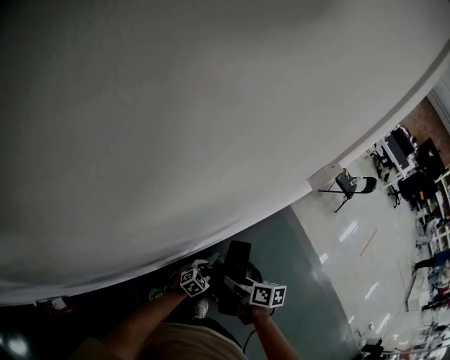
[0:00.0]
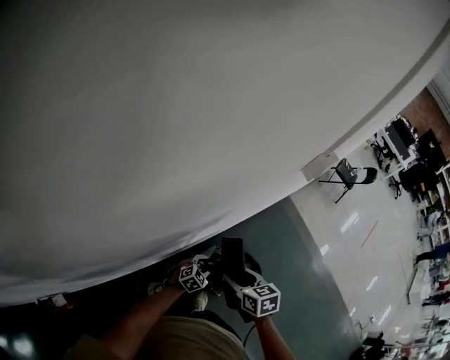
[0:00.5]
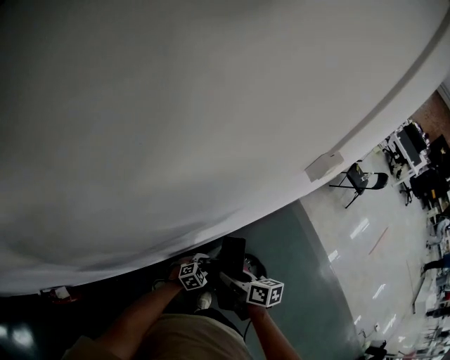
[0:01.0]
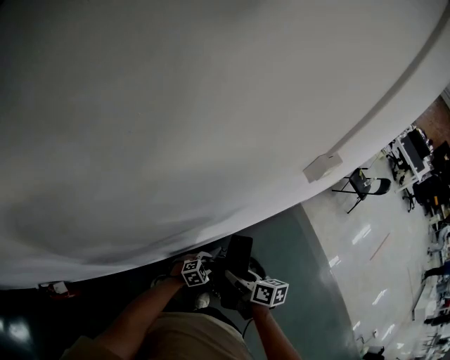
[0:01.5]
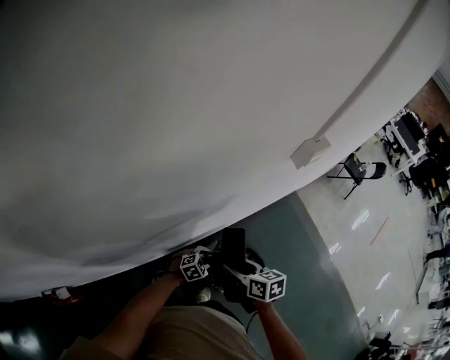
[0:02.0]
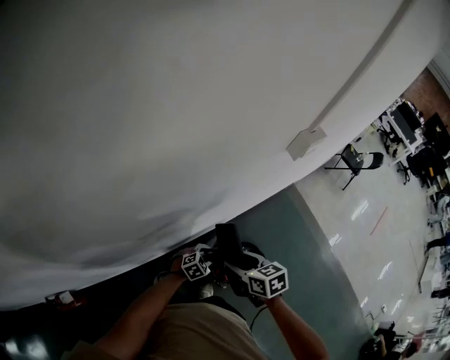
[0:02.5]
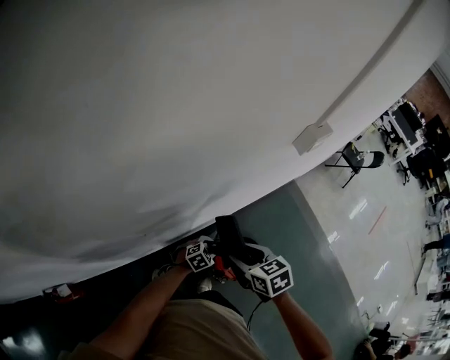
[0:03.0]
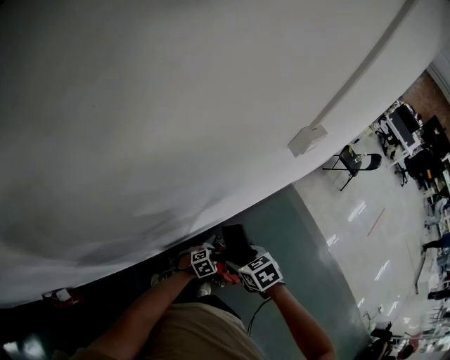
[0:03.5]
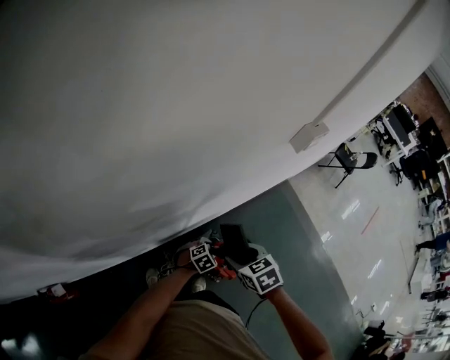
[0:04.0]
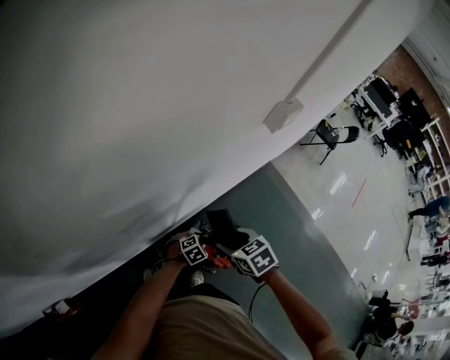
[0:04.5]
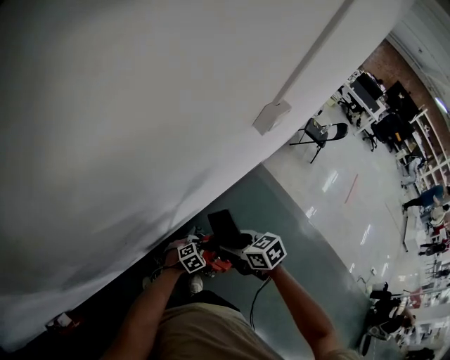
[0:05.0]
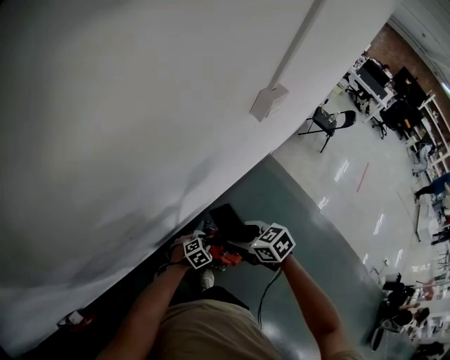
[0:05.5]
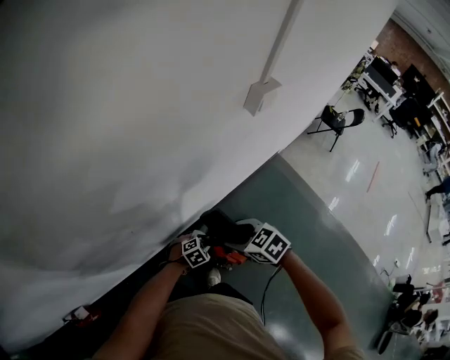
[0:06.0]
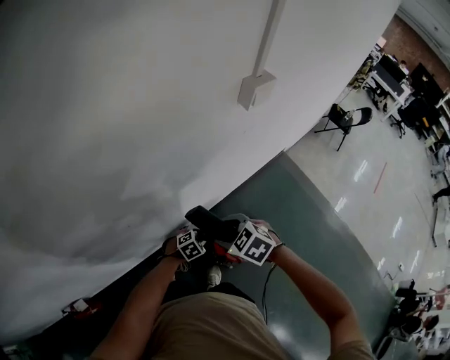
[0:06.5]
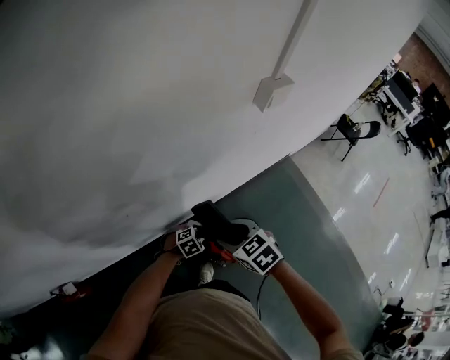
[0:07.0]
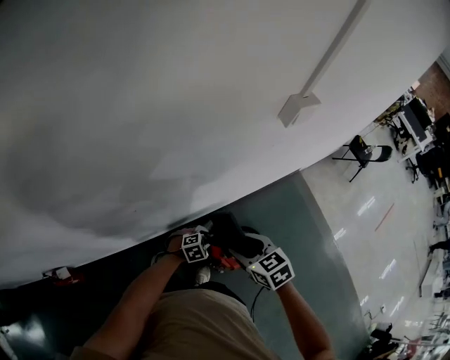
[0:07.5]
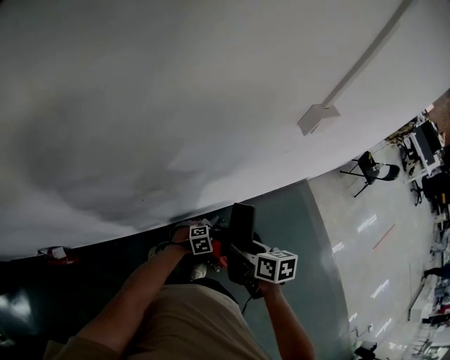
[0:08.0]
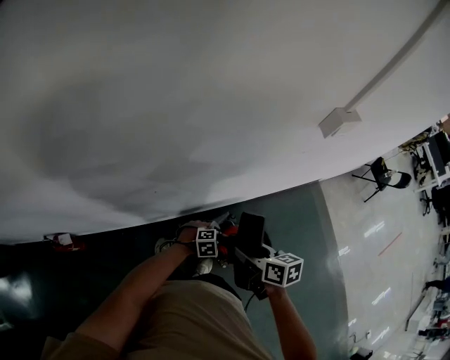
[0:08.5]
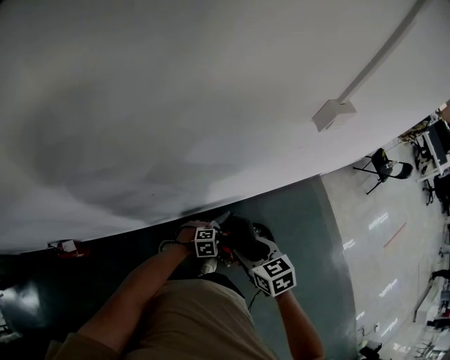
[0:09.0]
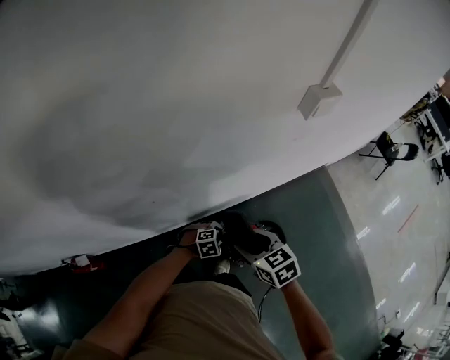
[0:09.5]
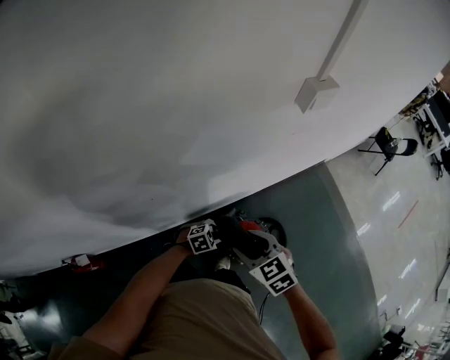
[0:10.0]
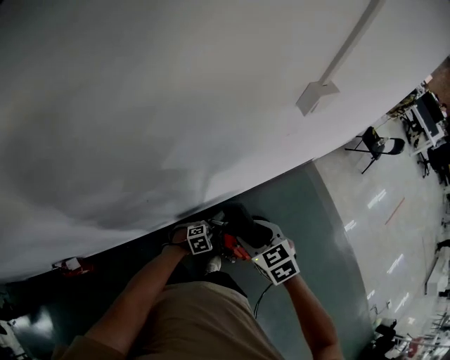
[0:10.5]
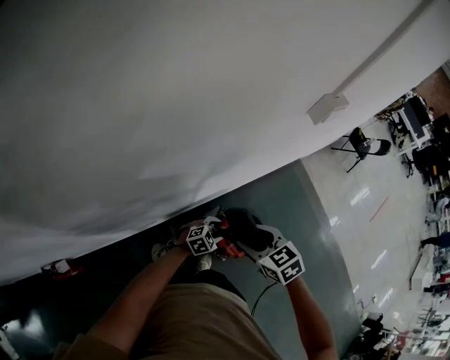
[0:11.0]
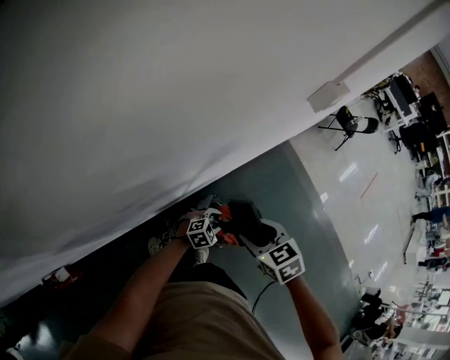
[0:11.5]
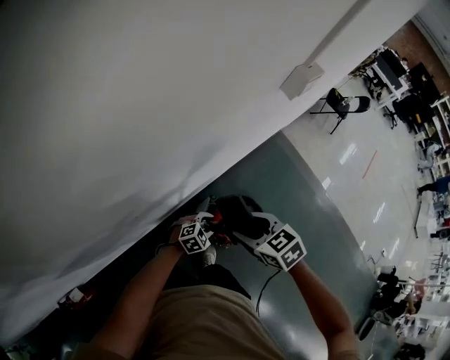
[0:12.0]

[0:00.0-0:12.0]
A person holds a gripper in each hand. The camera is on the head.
0:00.0 to 0:02.0: Both grippers move to the right, approximately 5 cm.
0:02.0 to 0:04.0: The right gripper changes its angle by some 30 degrees.
0:06.0 to 0:08.0: The right gripper rotates roughly 40 degrees.
0:08.0 to 0:10.0: The right gripper rolls counterclockwise, seen from behind, by some 40 degrees.
0:10.0 to 0:12.0: The left gripper closes, then reopens.

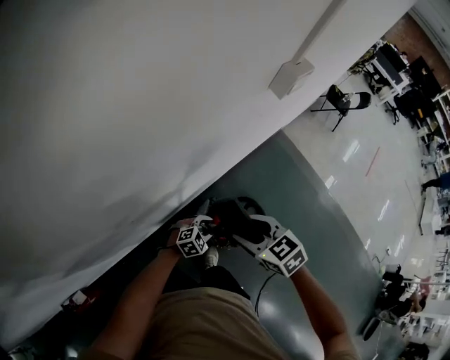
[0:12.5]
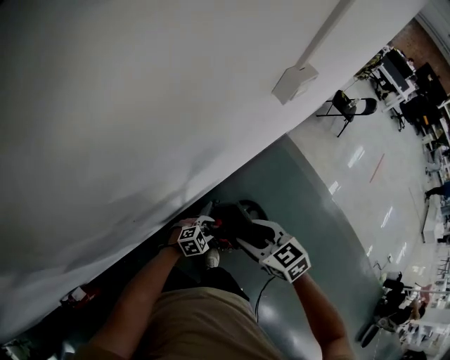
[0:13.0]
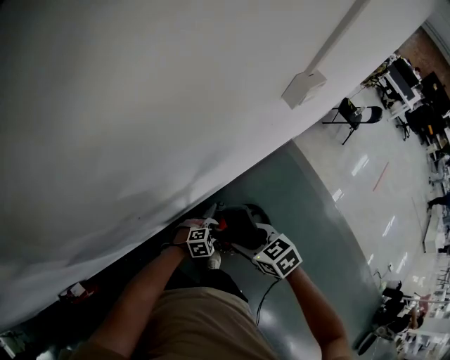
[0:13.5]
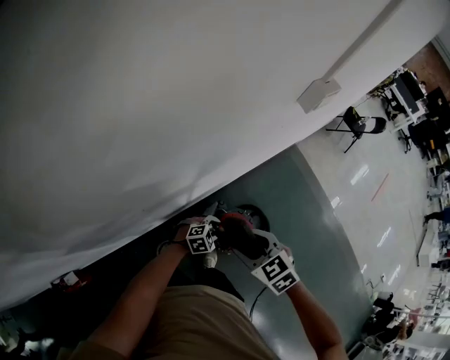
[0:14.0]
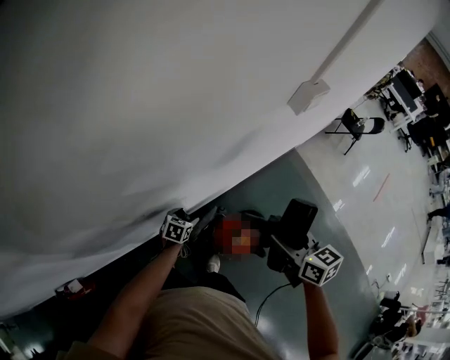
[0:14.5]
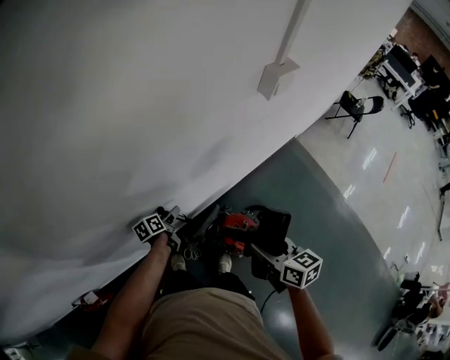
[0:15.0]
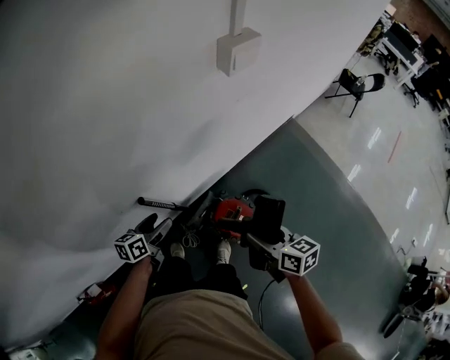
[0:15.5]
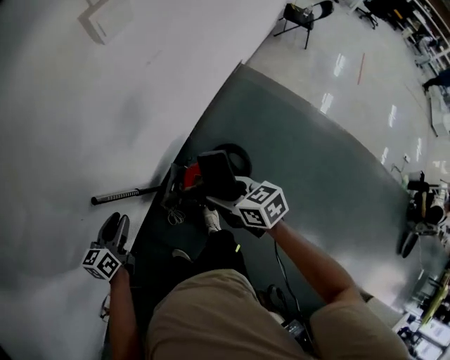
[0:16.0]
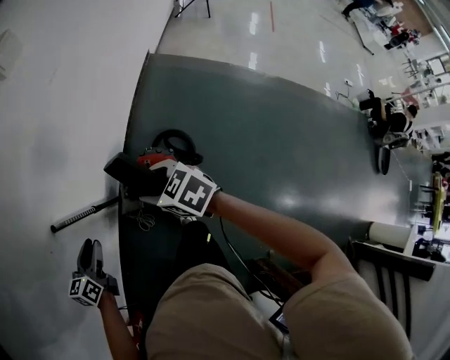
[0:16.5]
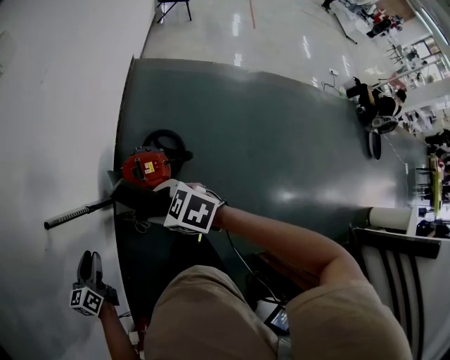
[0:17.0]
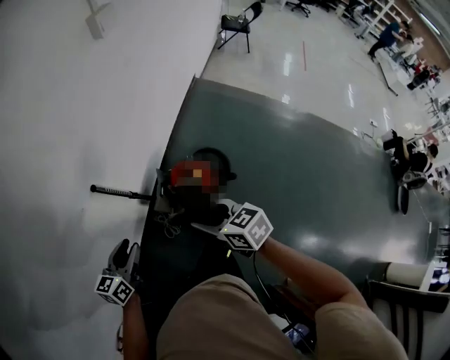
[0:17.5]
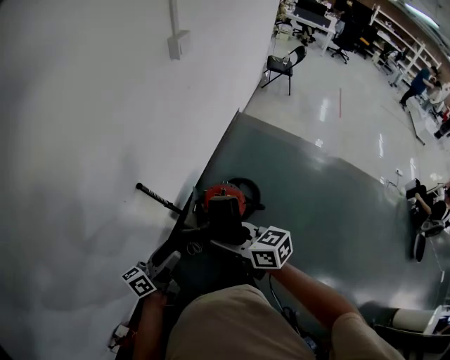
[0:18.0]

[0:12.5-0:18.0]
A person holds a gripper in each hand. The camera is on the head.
0:12.5 to 0:14.5: The right gripper moves approximately 10 cm, and swivels some 30 degrees. The left gripper changes place by approximately 15 cm, rolls counterclockwise, seen from behind, by approximately 50 degrees, and opens up.
0:14.5 to 0:16.0: The left gripper shifts approximately 25 cm upward, and turns by about 20 degrees; the right gripper travels downward, backward and to the right by about 15 cm.
0:16.0 to 0:18.0: The right gripper moves backward, to the left and upward, approximately 30 cm. The left gripper moves backward, about 20 cm, swivels about 40 degrees, and opens its fingers.

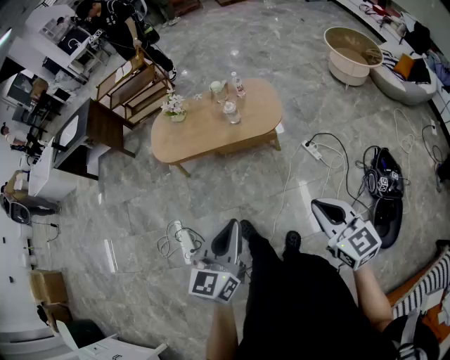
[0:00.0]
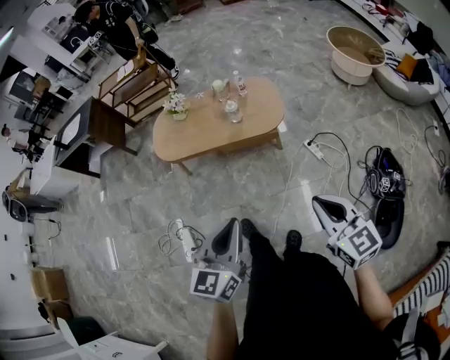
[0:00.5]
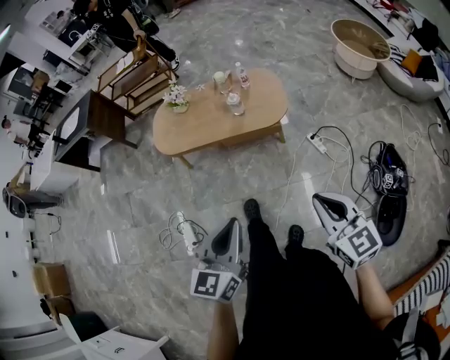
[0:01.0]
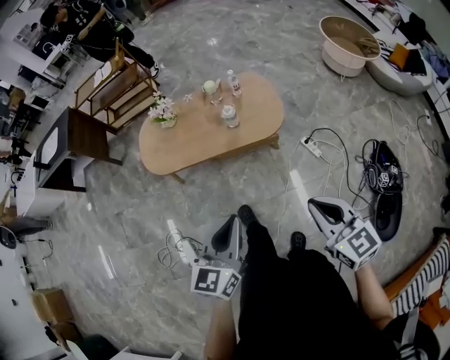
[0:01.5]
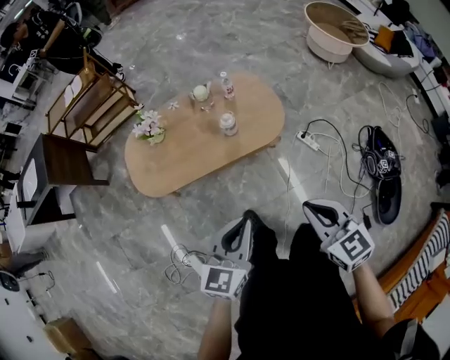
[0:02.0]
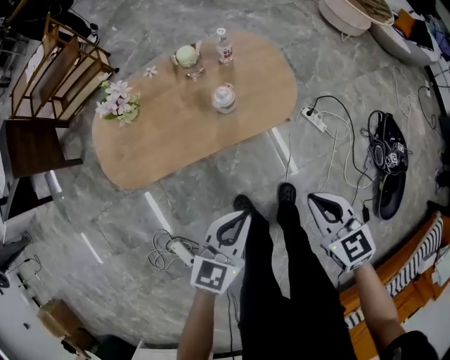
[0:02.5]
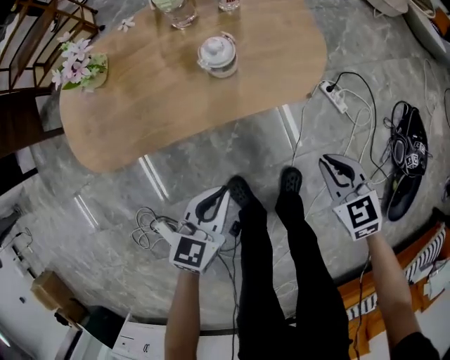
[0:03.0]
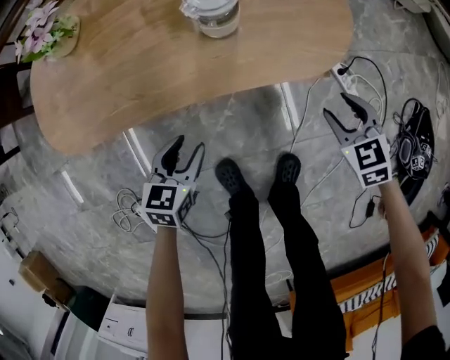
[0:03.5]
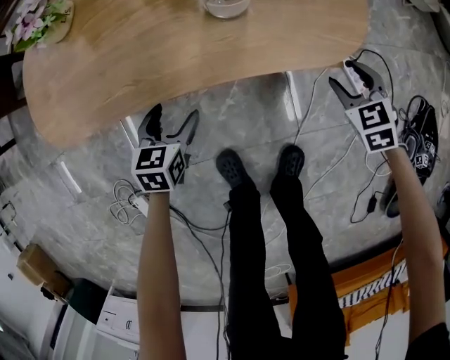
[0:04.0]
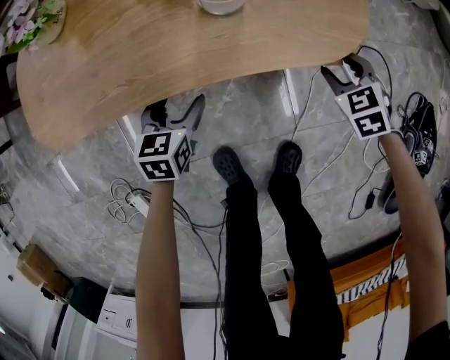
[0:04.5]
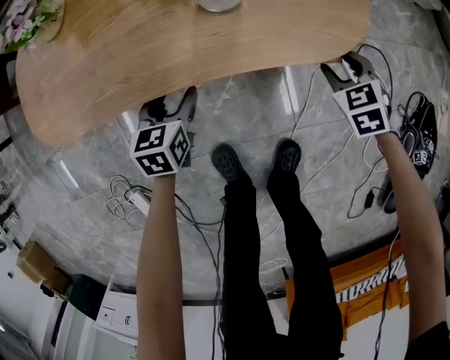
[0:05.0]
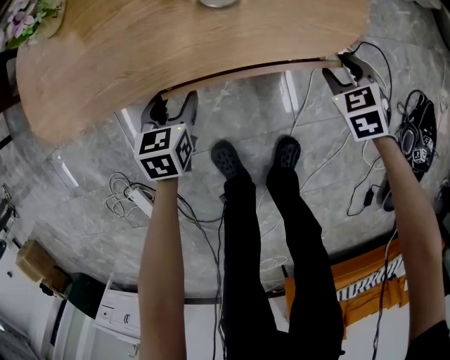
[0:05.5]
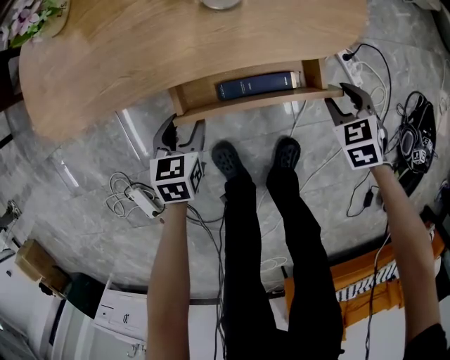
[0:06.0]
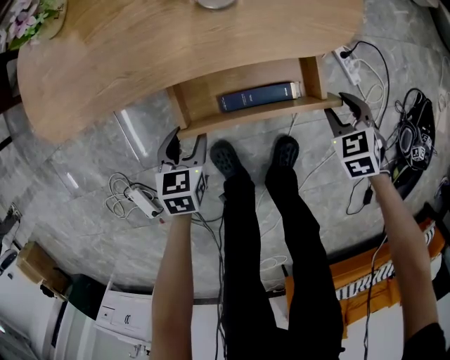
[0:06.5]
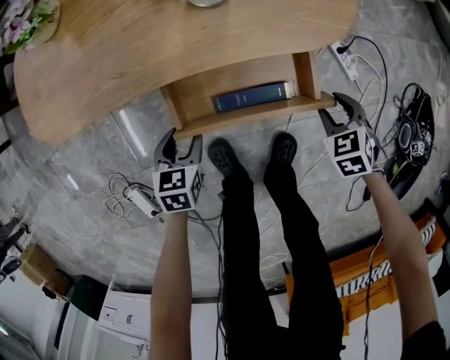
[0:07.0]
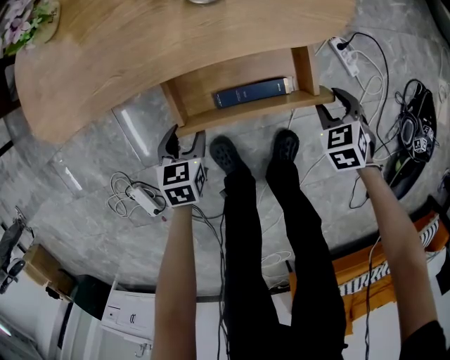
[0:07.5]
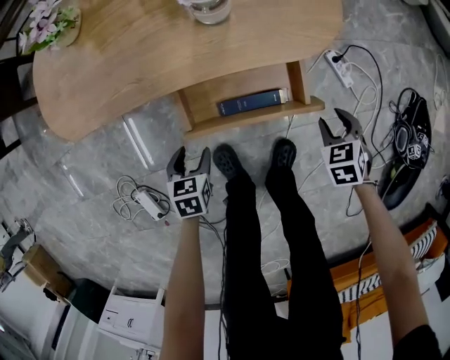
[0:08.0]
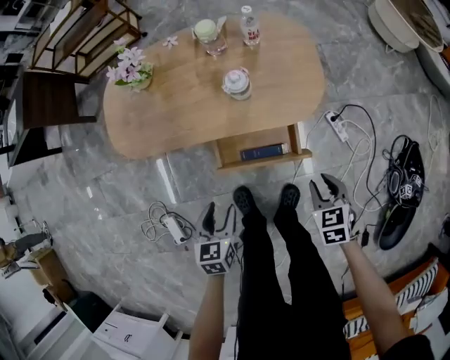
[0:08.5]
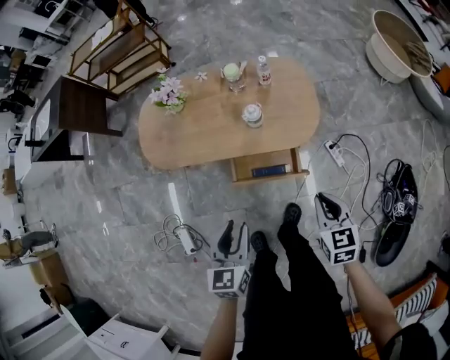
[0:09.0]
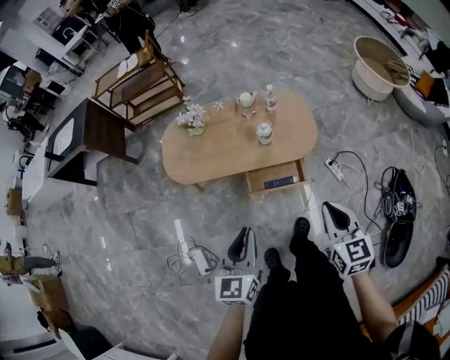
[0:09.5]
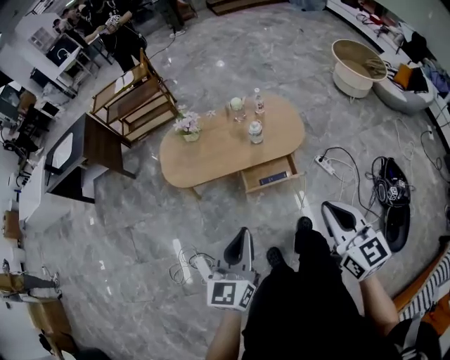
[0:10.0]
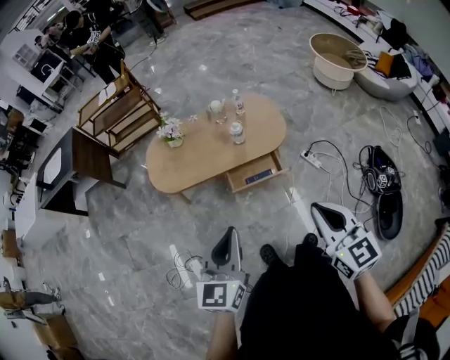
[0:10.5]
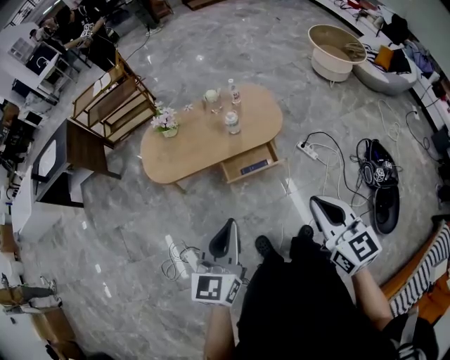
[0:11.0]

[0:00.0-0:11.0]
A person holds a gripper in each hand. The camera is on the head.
0:00.0 to 0:02.0: The left gripper is displaced forward by some 25 cm, and rotates approximately 20 degrees; the right gripper heads forward and to the left, covering some 30 cm.
0:02.0 to 0:03.5: The left gripper is displaced downward by some 50 cm, rotates roughly 30 degrees, and opens its fingers; the right gripper goes some 60 cm downward and forward, rotates some 30 degrees, and opens its fingers.
0:03.5 to 0:05.5: The left gripper is displaced forward and downward by some 10 cm, while the right gripper shifts about 10 cm downward and forward.
0:05.5 to 0:07.5: The two grippers go roughly 10 cm backward.
0:07.5 to 0:09.0: The two grippers go roughly 50 cm upward. The right gripper turns by about 40 degrees, and closes its fingers; the left gripper rotates roughly 30 degrees.
0:09.0 to 0:11.0: The grippers both shift upward and backward by approximately 35 cm. The left gripper swivels some 30 degrees, and closes its fingers, while the right gripper swivels about 30 degrees.
